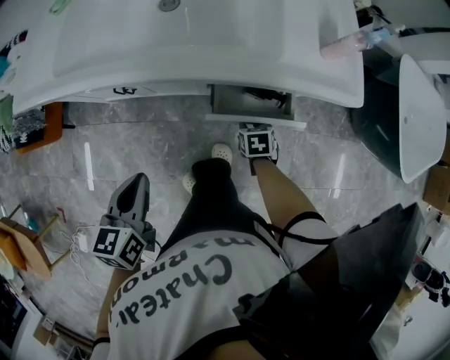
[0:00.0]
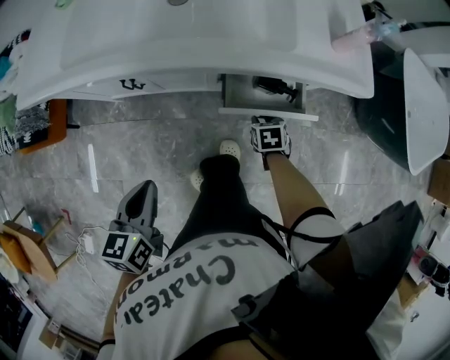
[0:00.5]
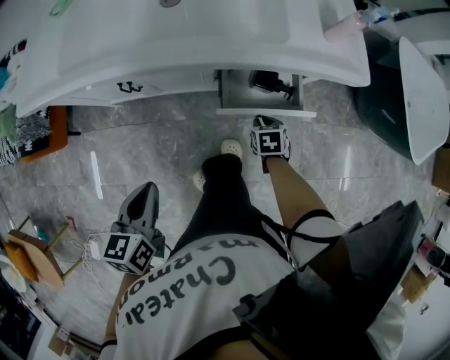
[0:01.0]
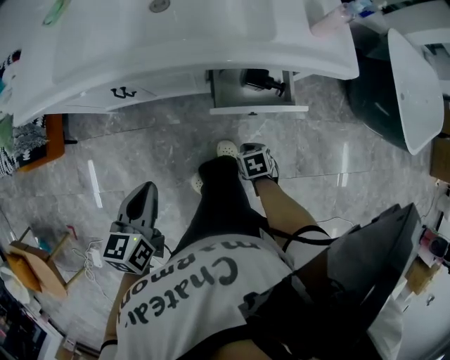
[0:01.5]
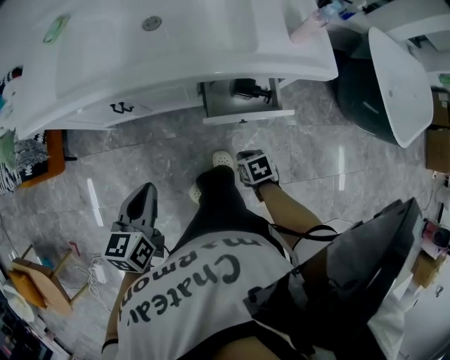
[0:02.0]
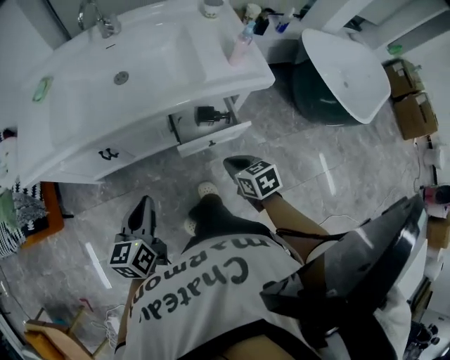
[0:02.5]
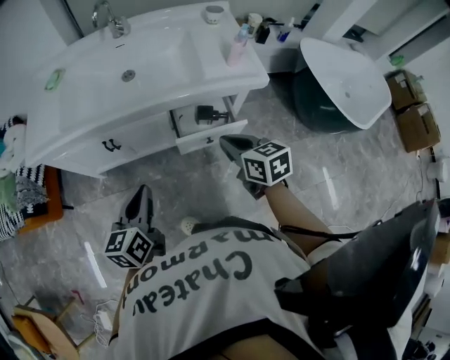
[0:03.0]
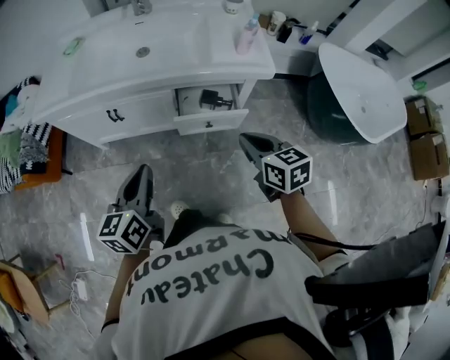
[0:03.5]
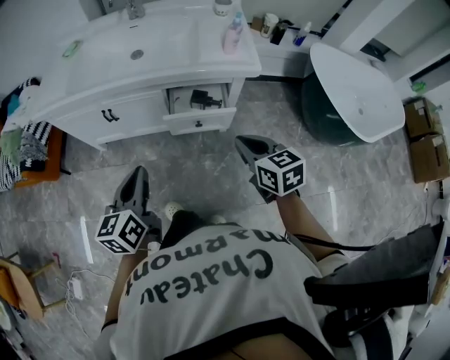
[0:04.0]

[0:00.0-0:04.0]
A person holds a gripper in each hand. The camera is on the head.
0:00.0 to 0:02.0: The right gripper travels backward by roughly 15 cm, and closes up.
0:02.0 to 0:04.0: The right gripper is displaced upward by some 30 cm, and tilts its fingers about 40 degrees upward. Meanwhile the left gripper is displaced to the right, backward and upward by about 20 cm, and rotates some 20 degrees.

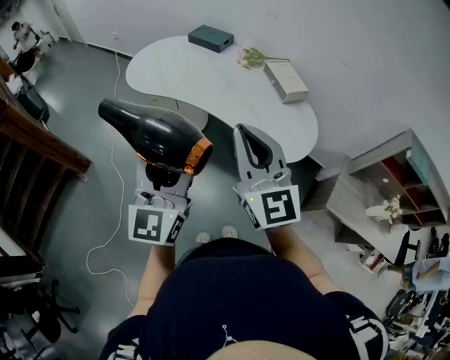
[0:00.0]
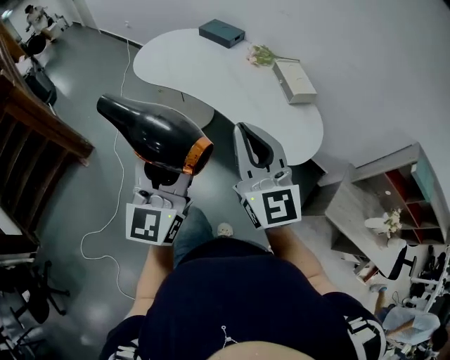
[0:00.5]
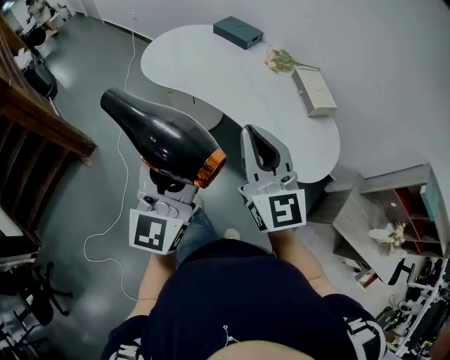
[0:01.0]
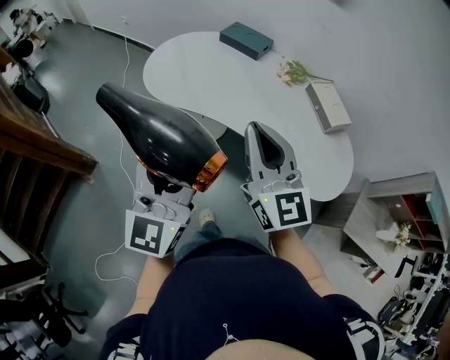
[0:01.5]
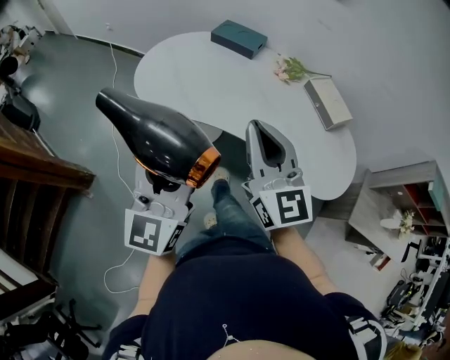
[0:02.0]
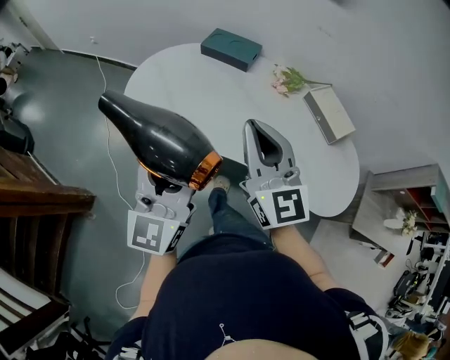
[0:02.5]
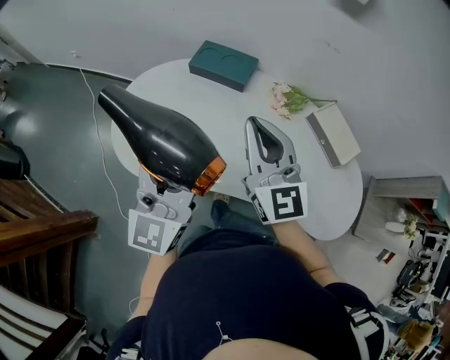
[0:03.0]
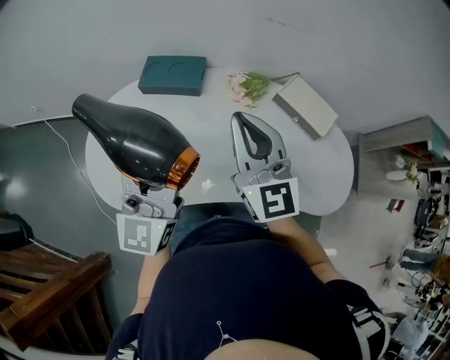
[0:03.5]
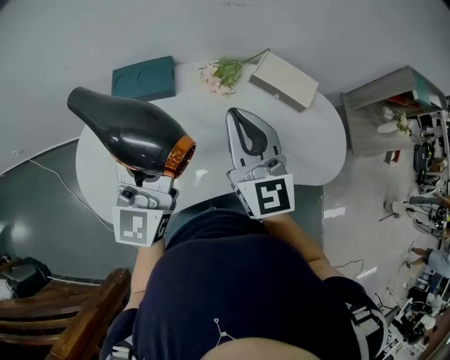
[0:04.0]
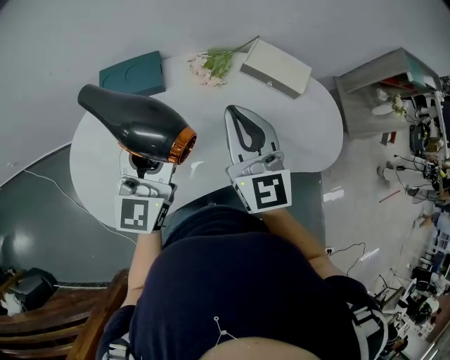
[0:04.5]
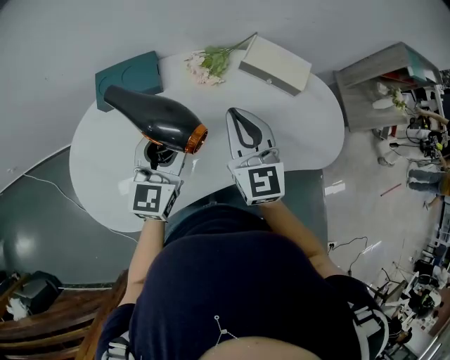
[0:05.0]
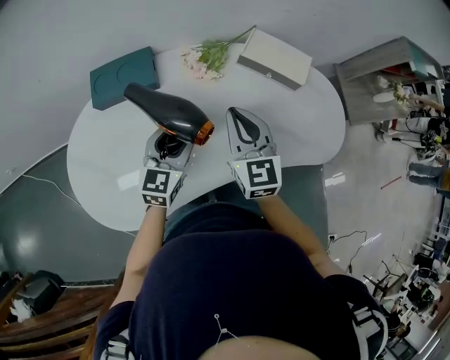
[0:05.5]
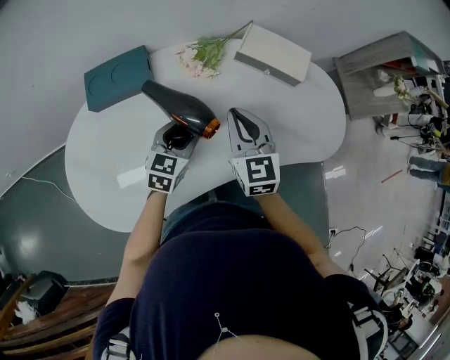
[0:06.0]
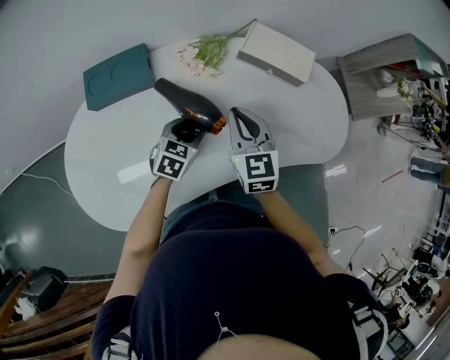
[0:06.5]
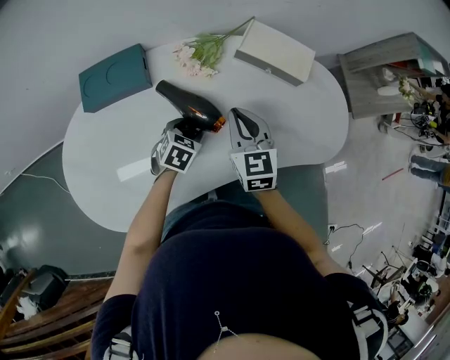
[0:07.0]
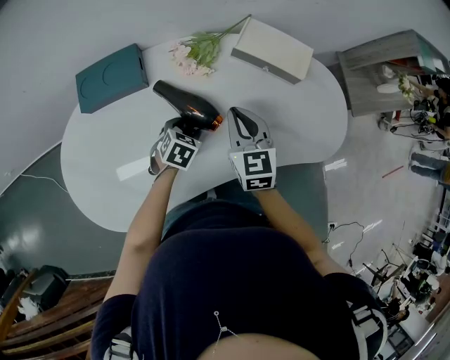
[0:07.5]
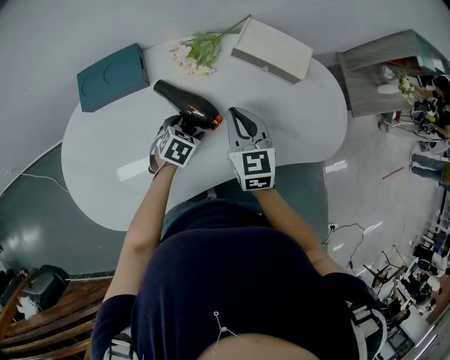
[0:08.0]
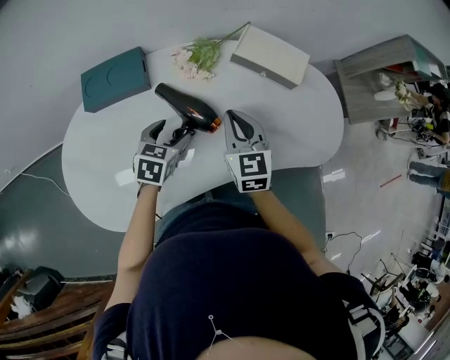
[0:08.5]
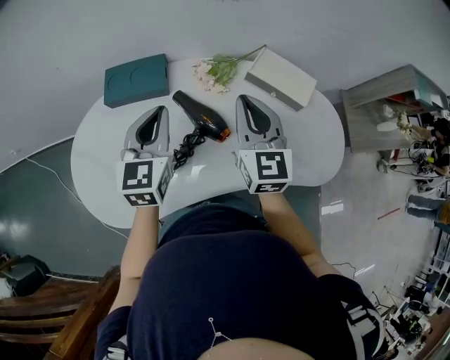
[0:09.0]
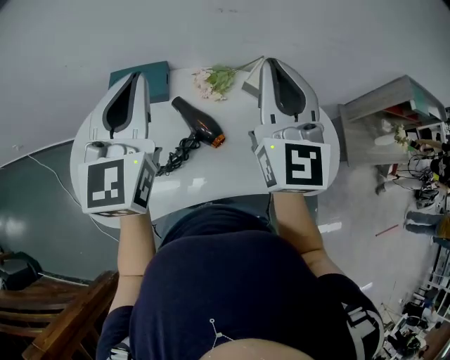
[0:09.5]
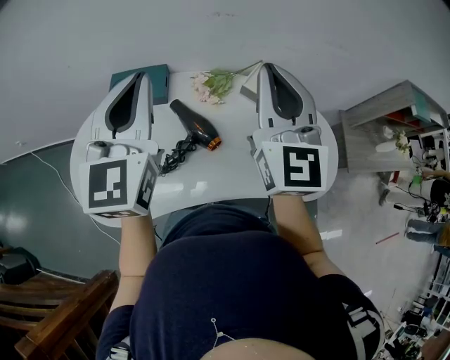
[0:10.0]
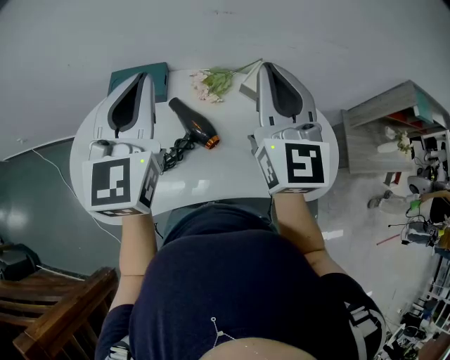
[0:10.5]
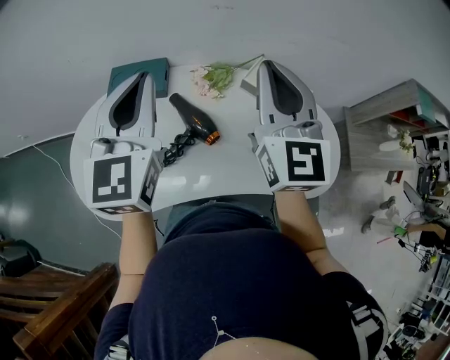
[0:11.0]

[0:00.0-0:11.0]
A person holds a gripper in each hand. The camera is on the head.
0:00.0 to 0:02.0: The two grippers go some 30 cm forward and to the left.
0:02.0 to 0:03.5: The grippers both shift forward by about 30 cm. The right gripper changes its angle by some 20 degrees. The left gripper swivels about 20 degrees.
0:03.5 to 0:05.5: The right gripper moves downward, some 15 cm, and changes its angle by about 30 degrees. Meanwhile the left gripper is displaced downward by roughly 20 cm, and tips its fingers downward by roughly 30 degrees.
0:05.5 to 0:07.5: The right gripper heads downward, covering some 10 cm; the left gripper goes roughly 15 cm downward, and angles its fingers downward, by roughly 40 degrees.
0:07.5 to 0:09.0: The right gripper moves upward, about 15 cm. Meanwhile the left gripper goes some 30 cm upward, tips its fingers upward by some 50 degrees, and closes.
0:09.0 to 0:11.0: The left gripper is displaced upward by roughly 15 cm. Meanwhile the right gripper travels upward and to the right by roughly 15 cm.

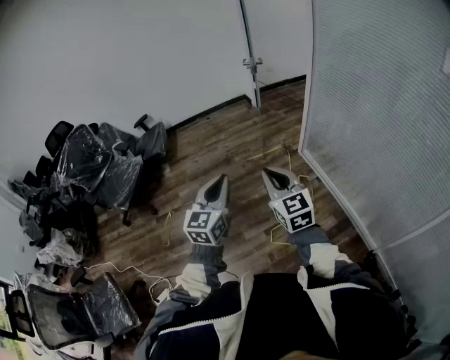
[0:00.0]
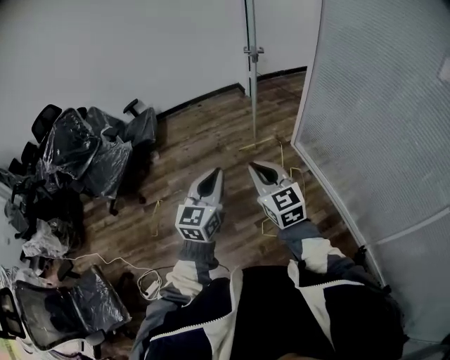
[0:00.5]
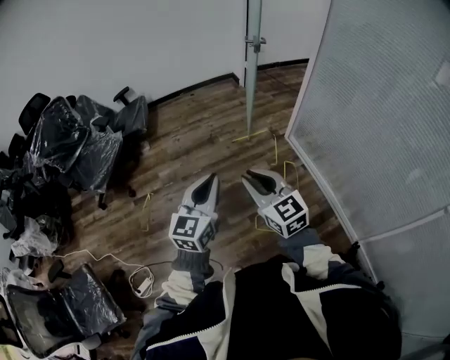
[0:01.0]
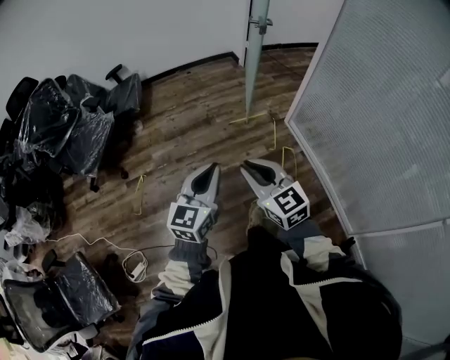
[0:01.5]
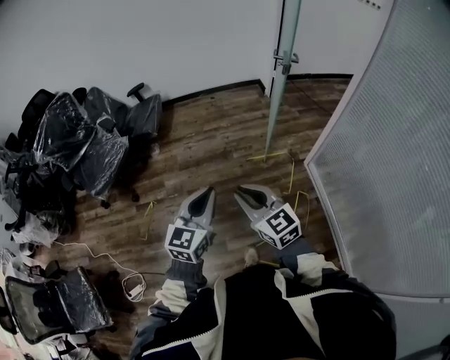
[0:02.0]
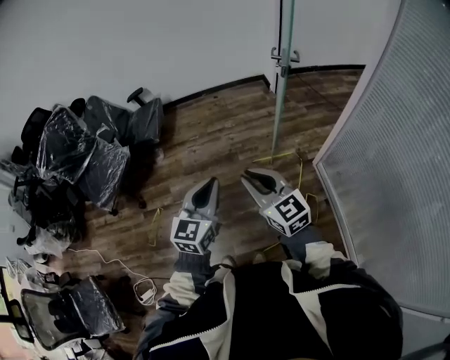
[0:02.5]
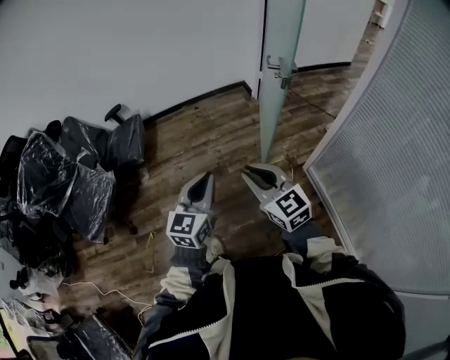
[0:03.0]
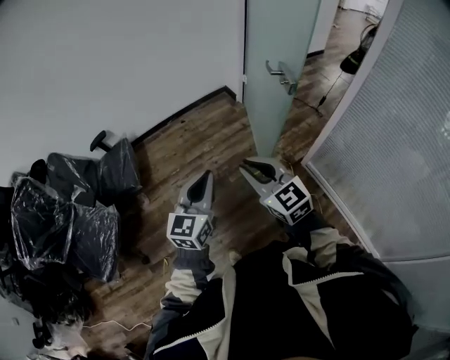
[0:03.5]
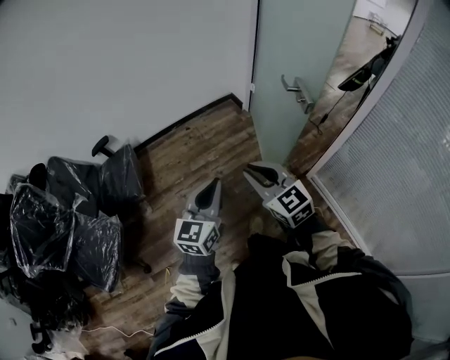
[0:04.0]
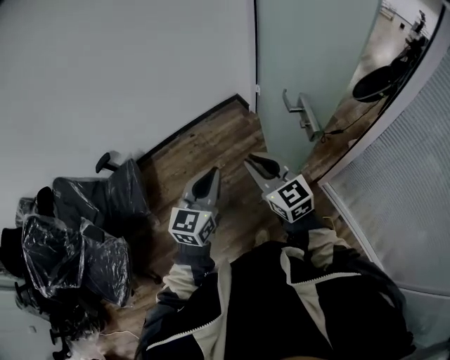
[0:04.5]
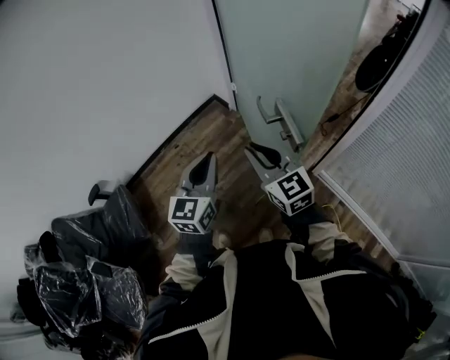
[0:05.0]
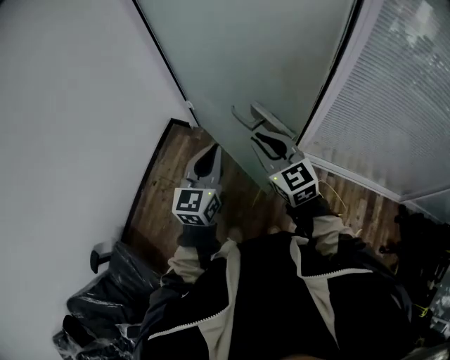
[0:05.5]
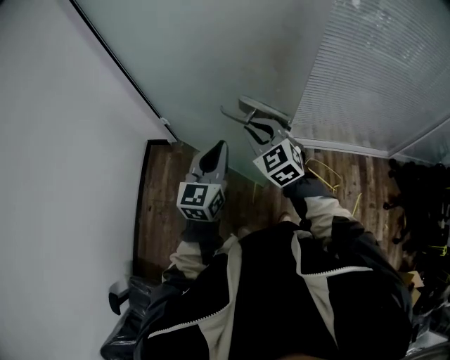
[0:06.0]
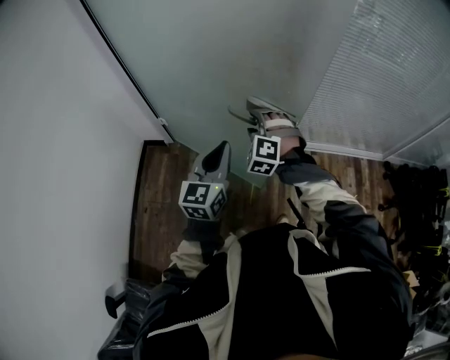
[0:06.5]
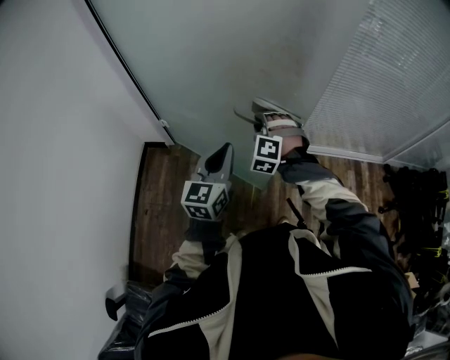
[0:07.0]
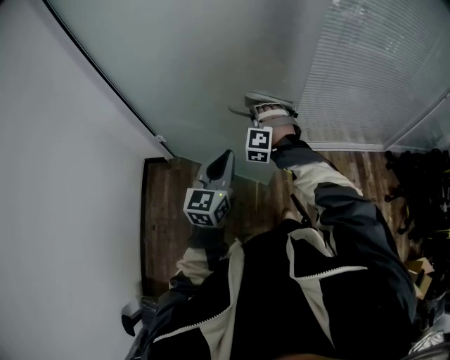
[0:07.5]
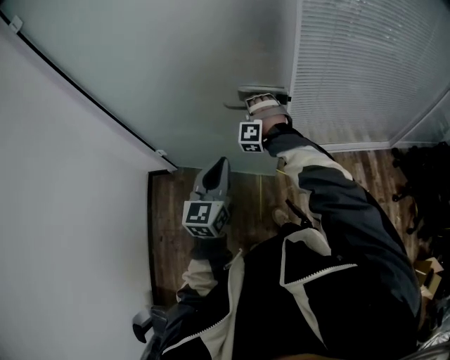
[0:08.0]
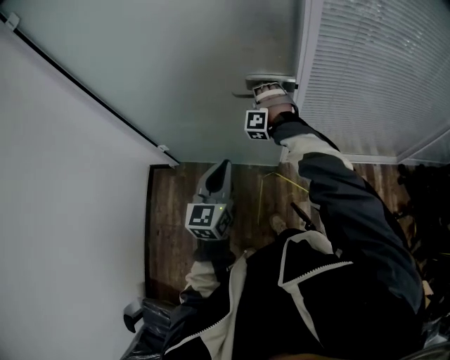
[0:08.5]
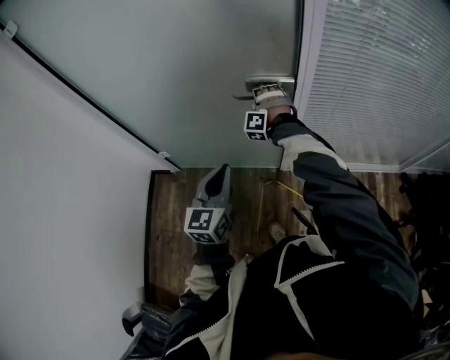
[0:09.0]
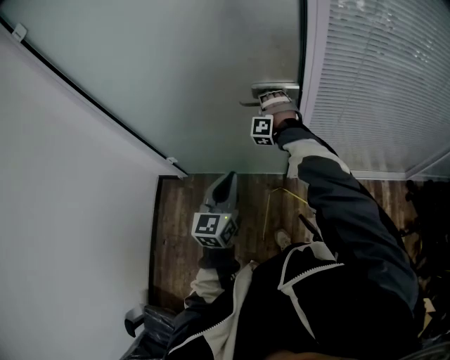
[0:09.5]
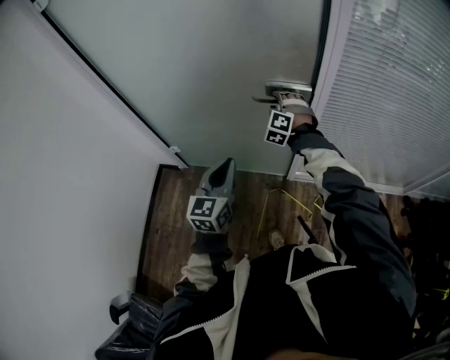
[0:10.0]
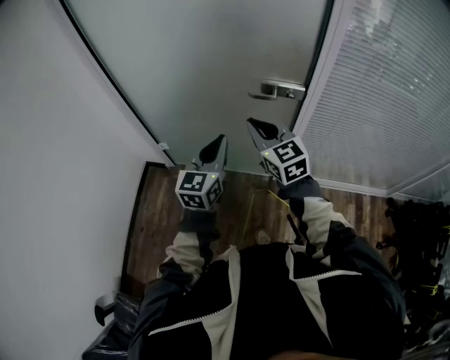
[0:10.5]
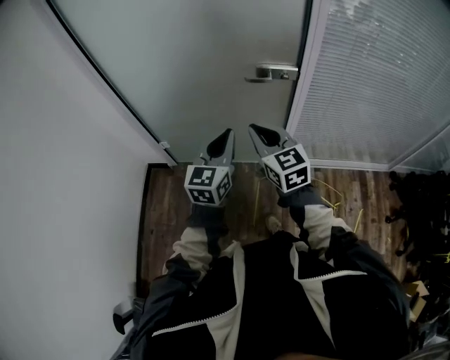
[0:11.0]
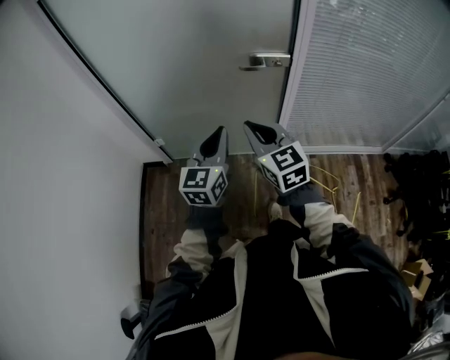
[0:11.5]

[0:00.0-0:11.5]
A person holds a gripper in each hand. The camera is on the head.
0:00.0 to 0:02.0: The left gripper shifts approximately 20 cm forward. The right gripper goes roughly 25 cm forward and to the left, and rotates approximately 30 degrees.
0:02.0 to 0:04.0: The pair of grippers is taken forward, about 40 cm.
0:04.0 to 0:06.0: The right gripper changes place by about 40 cm, and swivels roughly 60 degrees. Meanwhile the left gripper changes place by some 40 cm, and rotates approximately 50 degrees.
0:06.0 to 0:07.5: The right gripper shifts about 15 cm forward and downward, rotates around the line of its fingers by roughly 50 degrees, counterclockwise from behind, and opens, then closes again.
0:07.5 to 0:09.5: The right gripper goes some 25 cm forward. Meanwhile the left gripper is displaced forward by about 15 cm.
0:09.5 to 0:11.5: The right gripper travels backward and upward by about 40 cm, twists some 80 degrees clockwise, seen from behind, and closes its fingers; the left gripper moves to the left and upward, roughly 10 cm.
